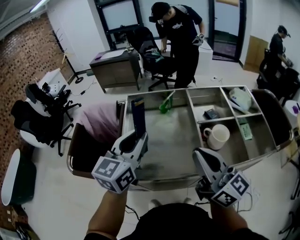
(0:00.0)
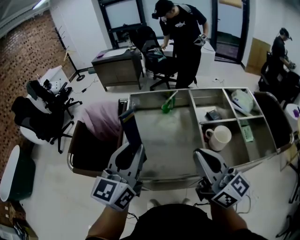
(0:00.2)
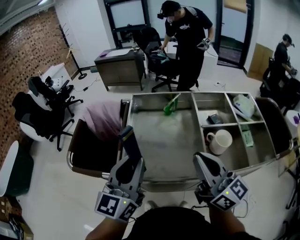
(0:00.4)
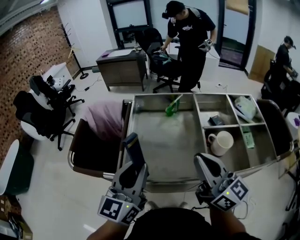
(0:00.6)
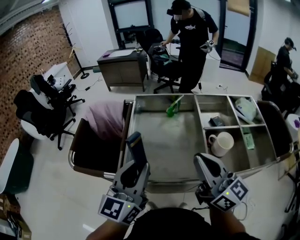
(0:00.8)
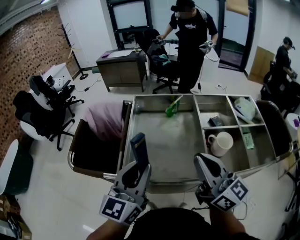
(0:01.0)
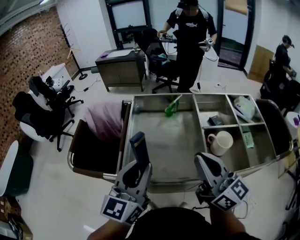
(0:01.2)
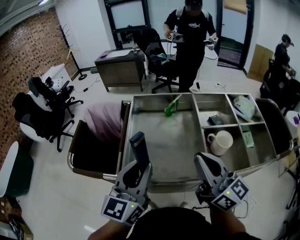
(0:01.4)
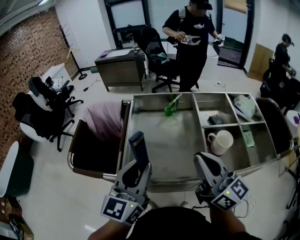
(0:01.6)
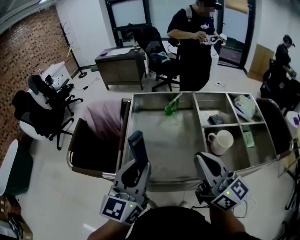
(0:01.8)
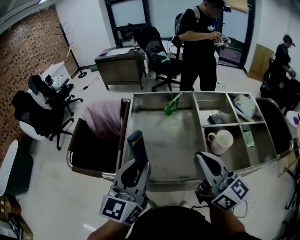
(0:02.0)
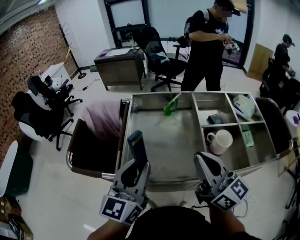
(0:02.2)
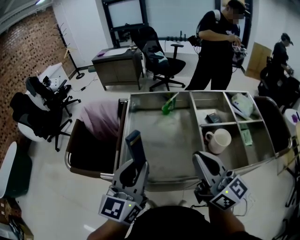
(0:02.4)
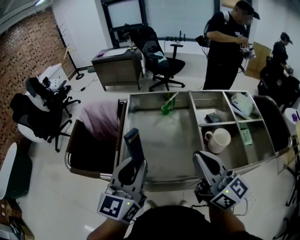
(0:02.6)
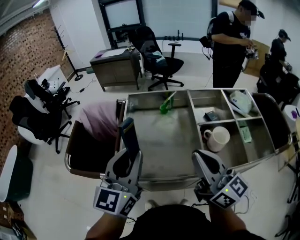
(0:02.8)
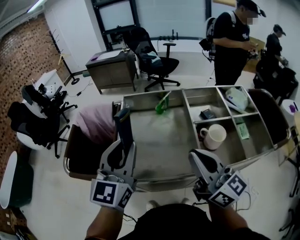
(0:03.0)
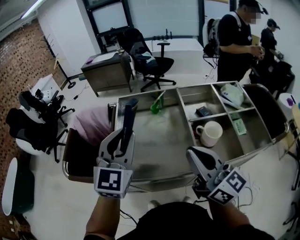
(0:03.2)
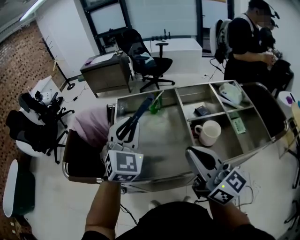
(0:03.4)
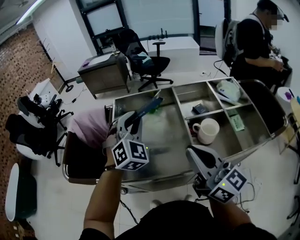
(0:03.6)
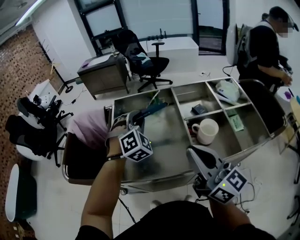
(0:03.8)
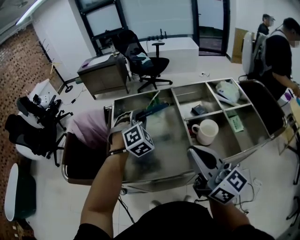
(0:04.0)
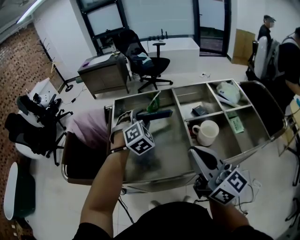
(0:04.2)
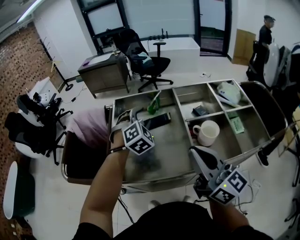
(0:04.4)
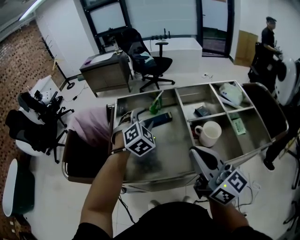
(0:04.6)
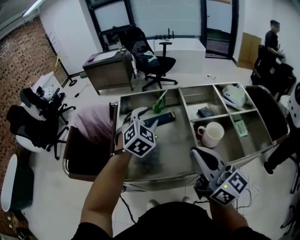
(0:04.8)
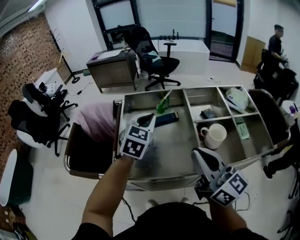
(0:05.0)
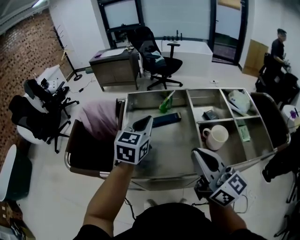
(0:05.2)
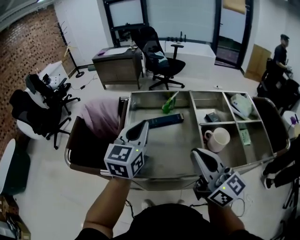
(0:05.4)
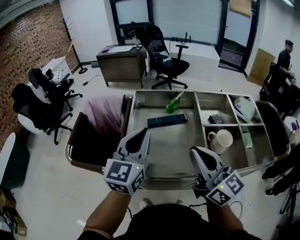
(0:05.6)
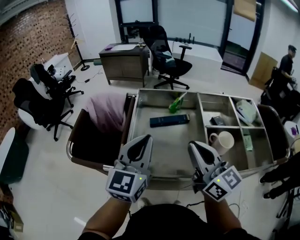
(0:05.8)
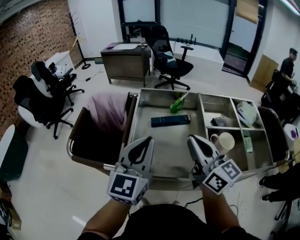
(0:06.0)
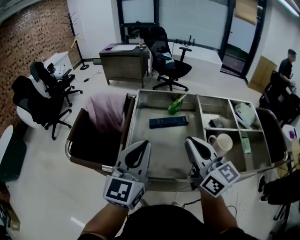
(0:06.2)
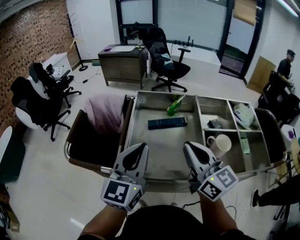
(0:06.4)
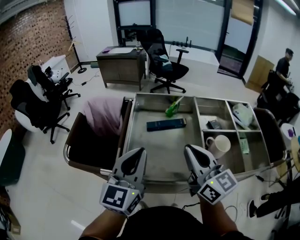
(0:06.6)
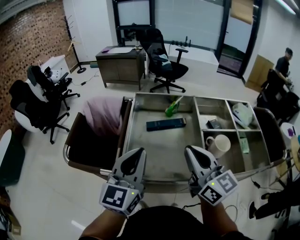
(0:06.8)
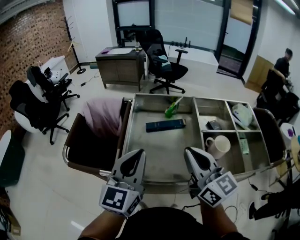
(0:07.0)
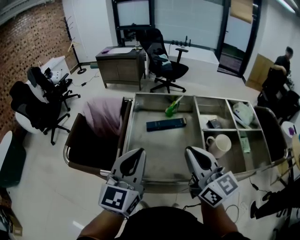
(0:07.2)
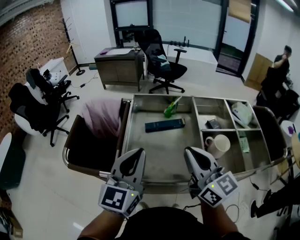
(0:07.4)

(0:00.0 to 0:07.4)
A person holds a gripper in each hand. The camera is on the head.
0:00.0 - 0:01.4: The left gripper heads backward, covering roughly 10 cm.
0:01.4 - 0:03.0: The left gripper changes place by some 5 cm.
0:03.0 - 0:04.4: The left gripper goes approximately 25 cm forward, downward and to the right, rolls clockwise, seen from behind, by approximately 50 degrees, and opens up.
0:04.4 - 0:06.0: The left gripper moves backward, upward and to the left, roughly 20 cm, rolls counterclockwise, seen from behind, by approximately 60 degrees, and closes, while the right gripper is displaced forward and to the left by some 10 cm.
0:06.0 - 0:07.4: There are only small adjustments of the grippers.

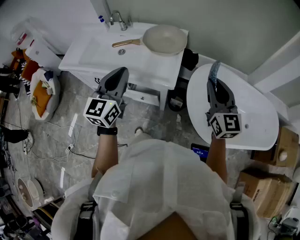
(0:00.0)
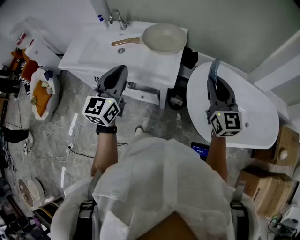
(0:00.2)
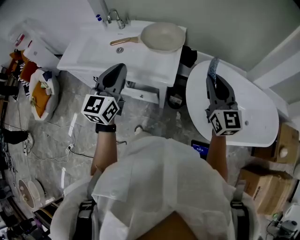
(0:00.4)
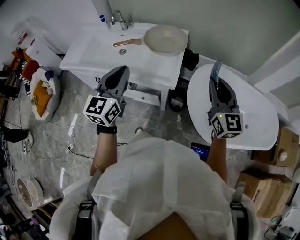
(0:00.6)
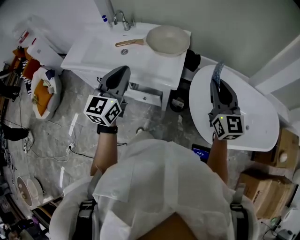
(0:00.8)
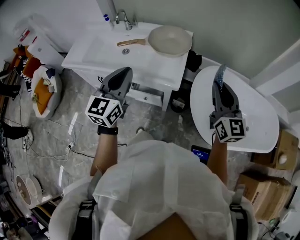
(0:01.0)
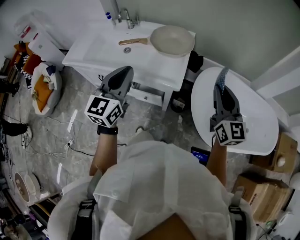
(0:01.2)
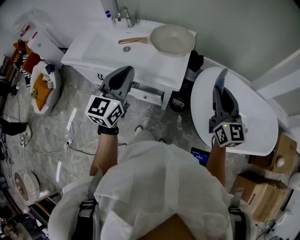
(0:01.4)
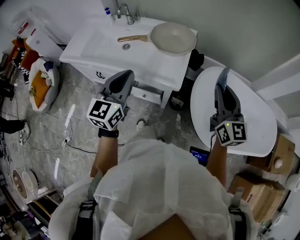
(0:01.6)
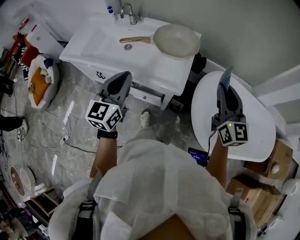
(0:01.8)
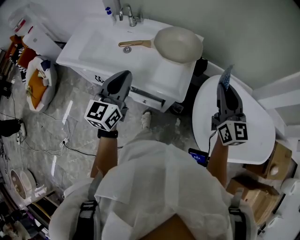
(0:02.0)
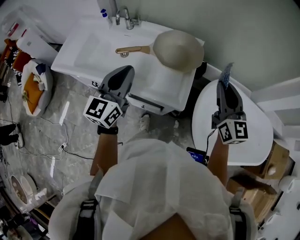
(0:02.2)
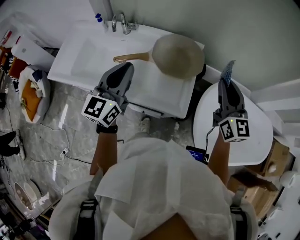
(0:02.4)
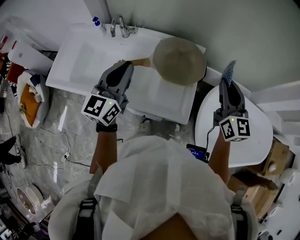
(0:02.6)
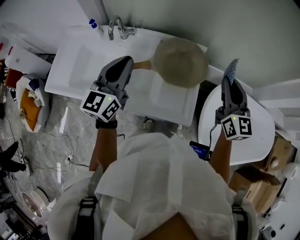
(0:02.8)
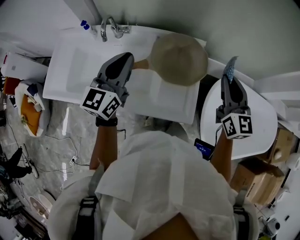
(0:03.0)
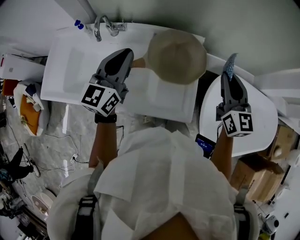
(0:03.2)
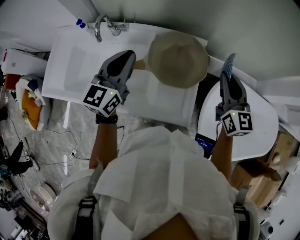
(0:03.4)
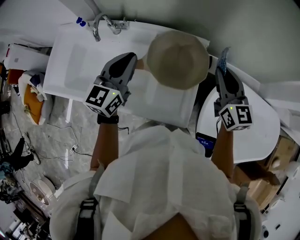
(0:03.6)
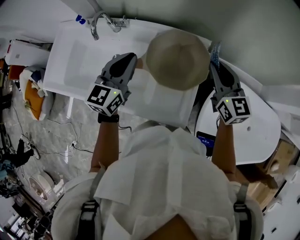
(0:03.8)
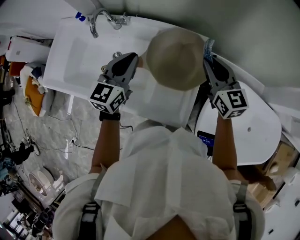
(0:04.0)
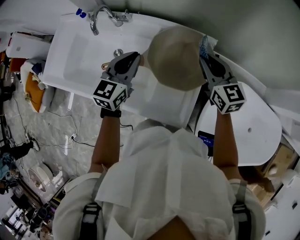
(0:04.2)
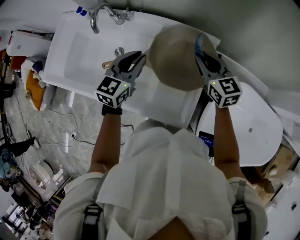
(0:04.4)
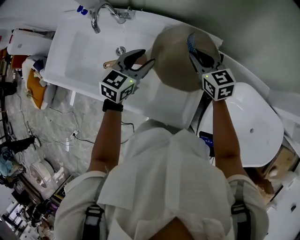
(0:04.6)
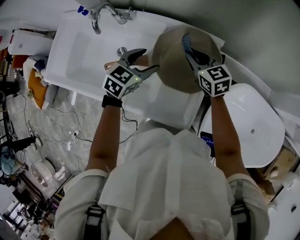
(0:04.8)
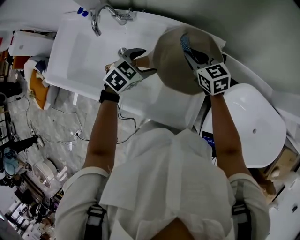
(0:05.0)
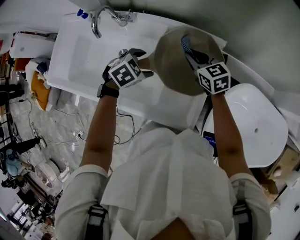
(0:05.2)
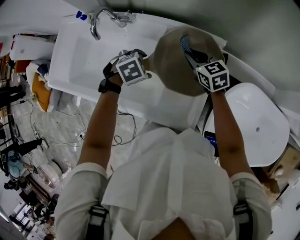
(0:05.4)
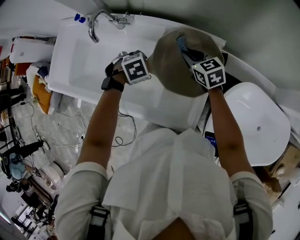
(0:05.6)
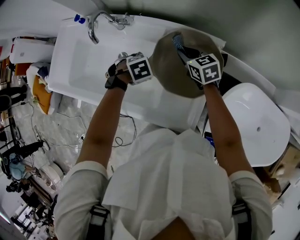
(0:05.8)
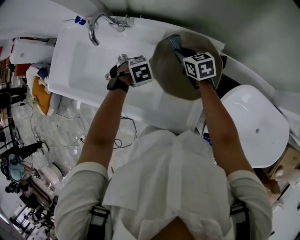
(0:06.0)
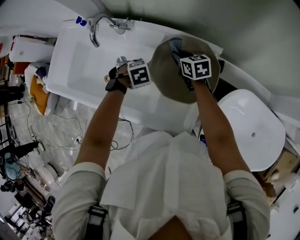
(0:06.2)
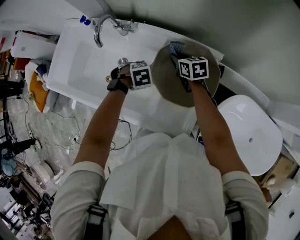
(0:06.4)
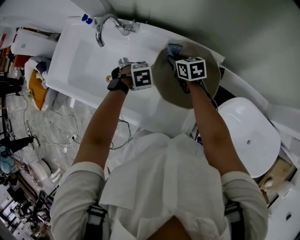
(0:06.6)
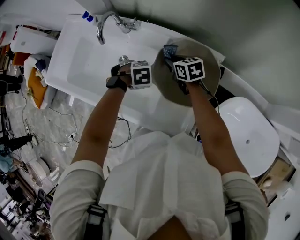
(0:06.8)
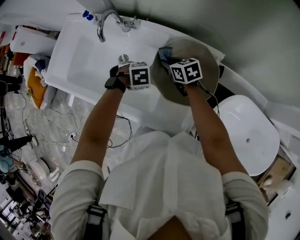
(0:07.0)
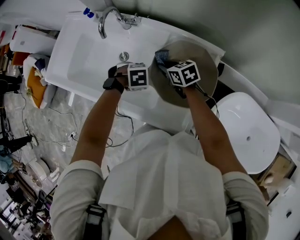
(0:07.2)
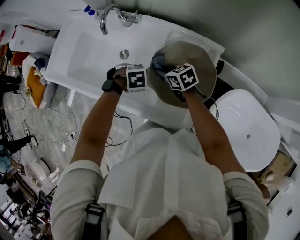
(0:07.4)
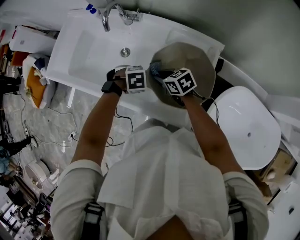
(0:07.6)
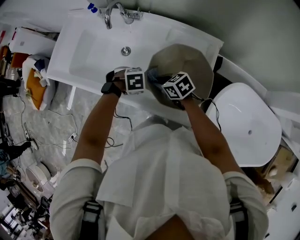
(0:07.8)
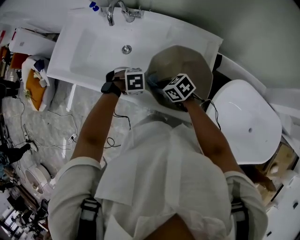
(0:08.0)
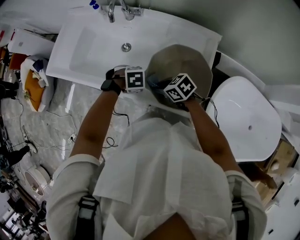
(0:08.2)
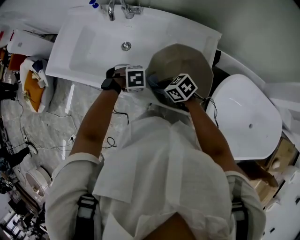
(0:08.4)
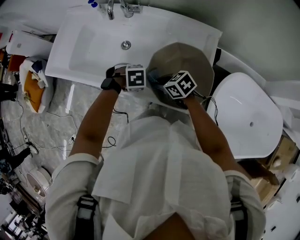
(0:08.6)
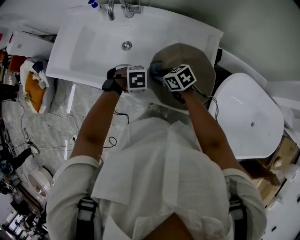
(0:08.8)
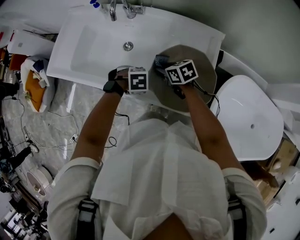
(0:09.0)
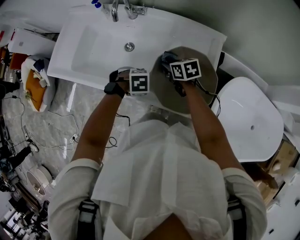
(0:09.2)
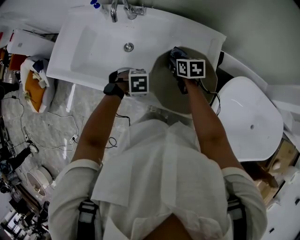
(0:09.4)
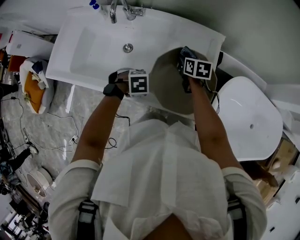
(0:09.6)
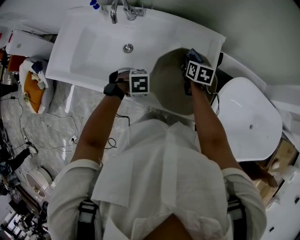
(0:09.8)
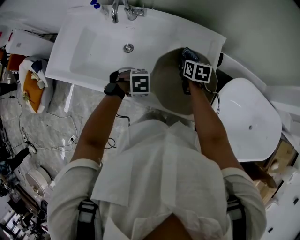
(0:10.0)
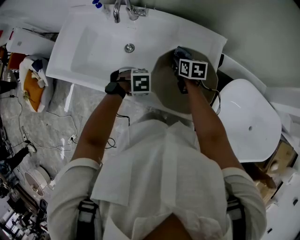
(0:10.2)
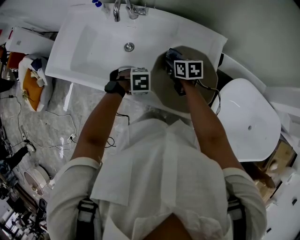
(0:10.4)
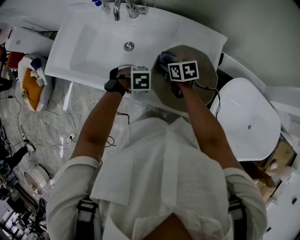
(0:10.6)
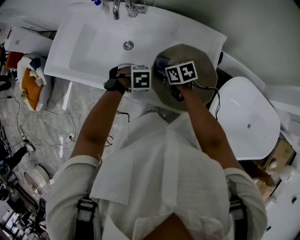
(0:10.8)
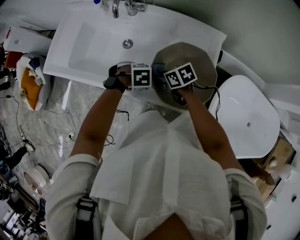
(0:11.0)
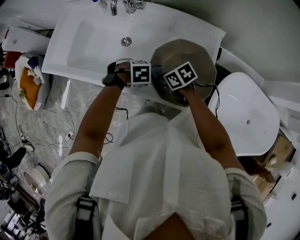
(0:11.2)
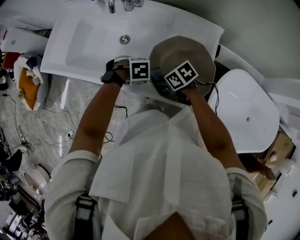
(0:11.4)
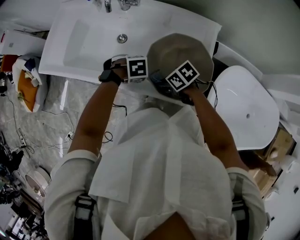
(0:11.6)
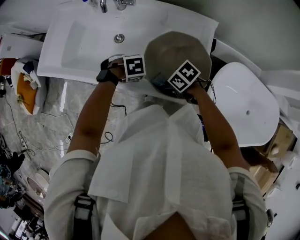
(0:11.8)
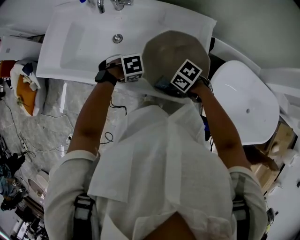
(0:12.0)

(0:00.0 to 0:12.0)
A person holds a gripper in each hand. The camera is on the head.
0:00.0 - 0:01.6: The grippers stay close to where they were, moving slightly.
0:01.6 - 0:03.0: The grippers both shift forward by about 30 cm.
0:03.0 - 0:04.4: The right gripper moves forward, downward and to the left, approximately 20 cm, and turns by approximately 30 degrees. Meanwhile the left gripper moves downward, to the right and forward, some 15 cm, and turns by approximately 20 degrees.
0:04.4 - 0:06.0: The left gripper shifts about 20 cm downward, angles its fingers downward, by about 60 degrees, and opens its fingers; the right gripper shifts roughly 10 cm downward, and turns by some 20 degrees.
0:06.0 - 0:07.6: The right gripper moves about 20 cm, and swivels roughly 20 degrees, while the left gripper moves some 10 cm.
0:07.6 - 0:09.0: The left gripper moves roughly 5 cm.
0:10.4 - 0:12.0: The right gripper shifts by approximately 20 cm, and rotates some 50 degrees.

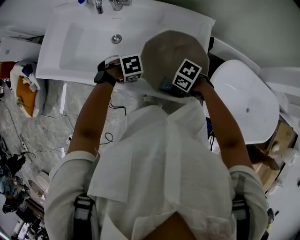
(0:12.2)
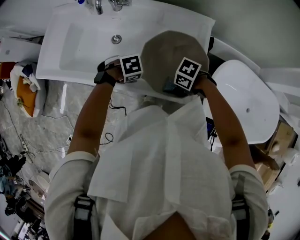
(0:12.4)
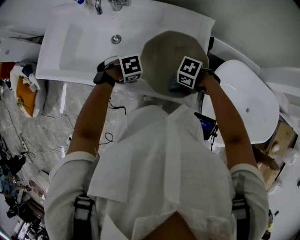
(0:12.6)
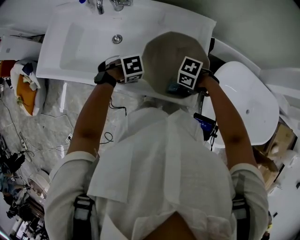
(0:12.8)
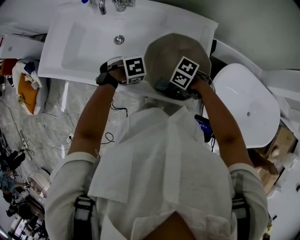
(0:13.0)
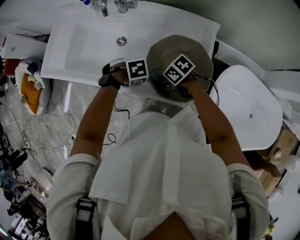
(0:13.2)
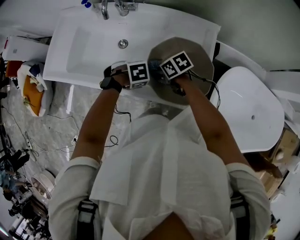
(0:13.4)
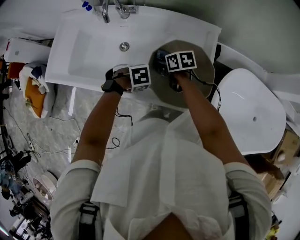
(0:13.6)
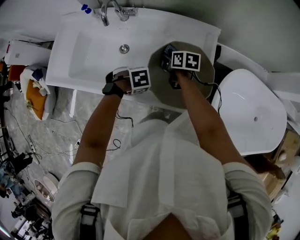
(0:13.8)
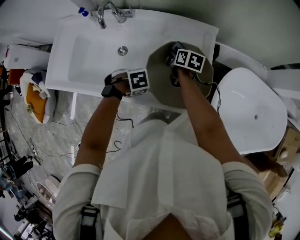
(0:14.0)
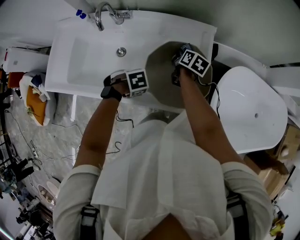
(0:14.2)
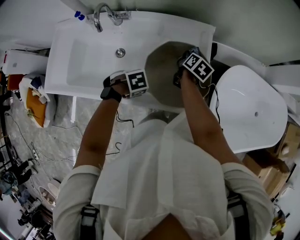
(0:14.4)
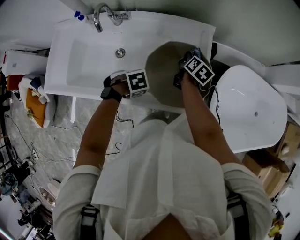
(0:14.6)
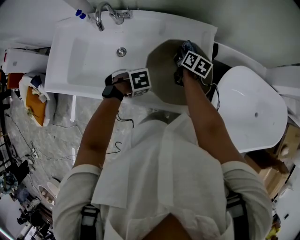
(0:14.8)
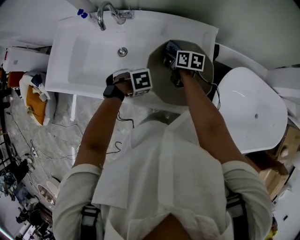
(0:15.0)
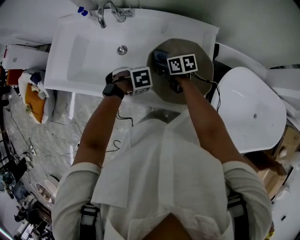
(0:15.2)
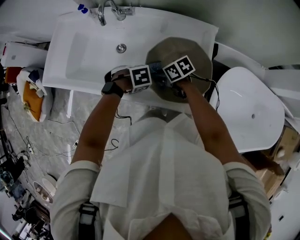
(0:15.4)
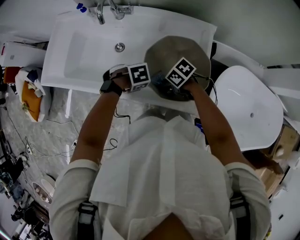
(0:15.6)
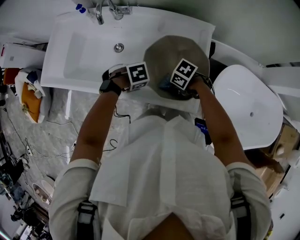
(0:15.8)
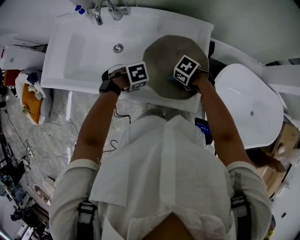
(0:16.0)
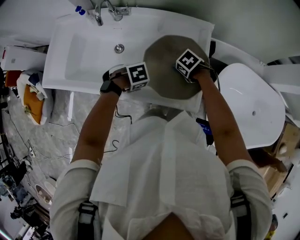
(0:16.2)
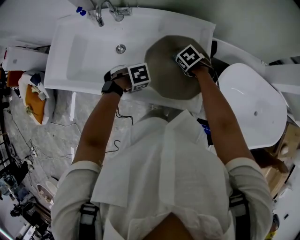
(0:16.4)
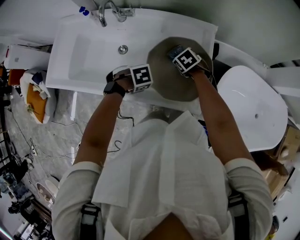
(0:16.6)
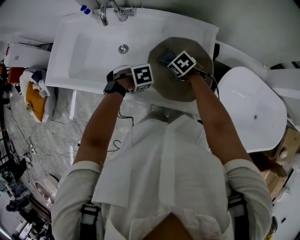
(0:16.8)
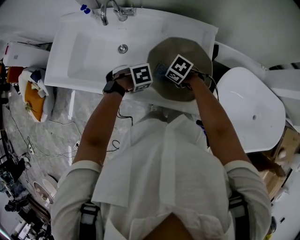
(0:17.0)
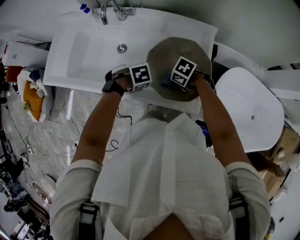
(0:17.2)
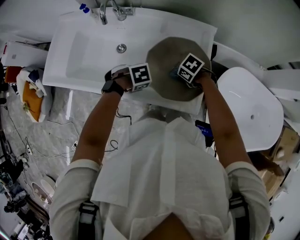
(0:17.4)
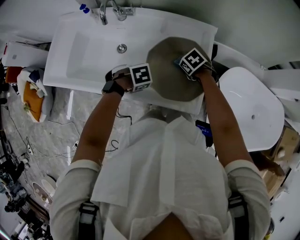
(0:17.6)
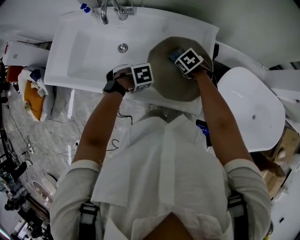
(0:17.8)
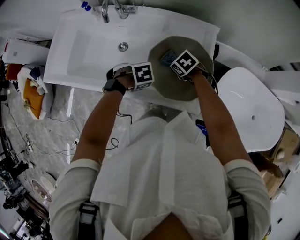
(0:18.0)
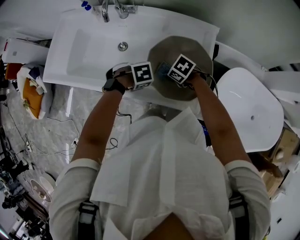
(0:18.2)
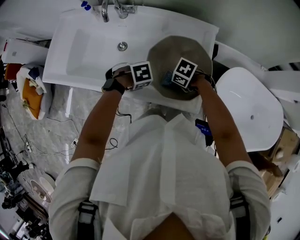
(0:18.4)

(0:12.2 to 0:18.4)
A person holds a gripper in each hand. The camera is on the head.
0:12.2 - 0:13.8: The right gripper moves approximately 25 cm, and swivels some 70 degrees.
0:13.8 - 0:15.4: The right gripper moves approximately 10 cm, and swivels approximately 40 degrees.
0:15.4 - 0:16.8: The right gripper rotates roughly 30 degrees.
0:16.8 - 0:18.4: The right gripper shifts by about 10 cm, and changes its angle by approximately 30 degrees.
